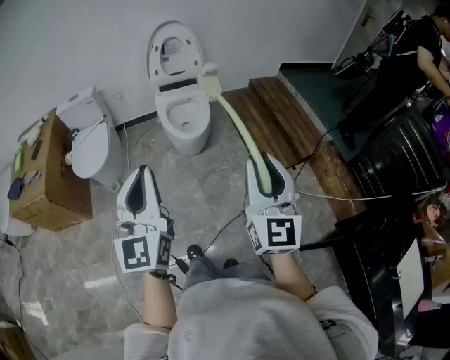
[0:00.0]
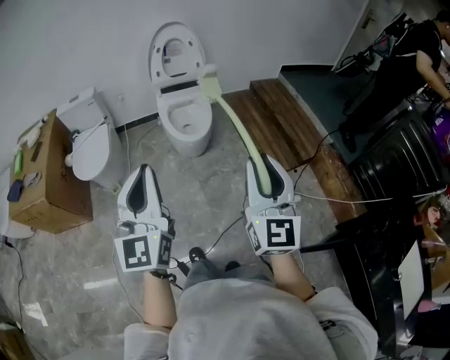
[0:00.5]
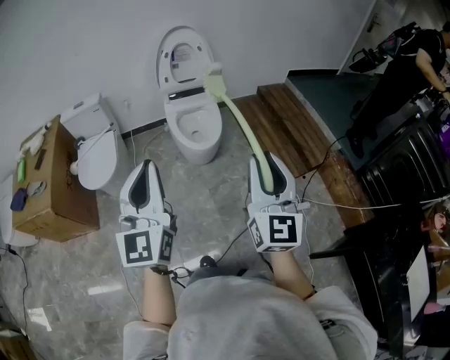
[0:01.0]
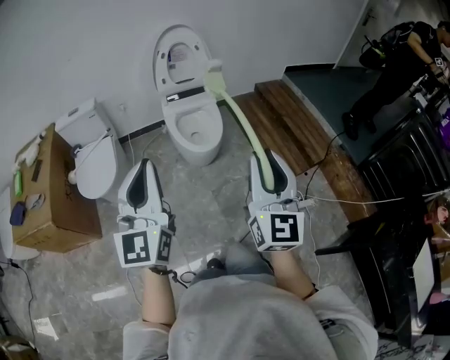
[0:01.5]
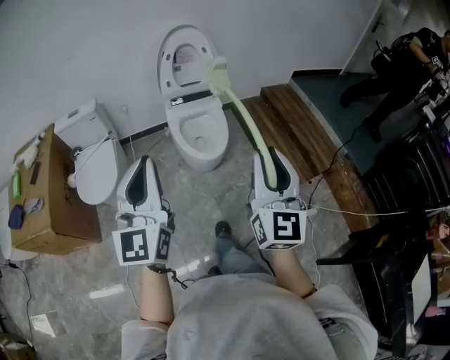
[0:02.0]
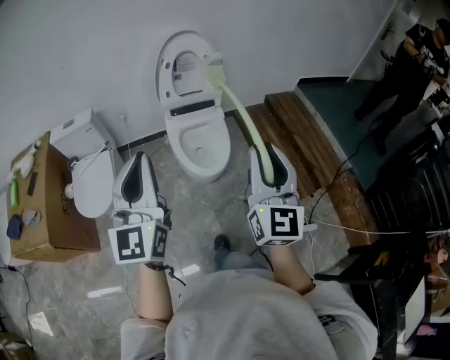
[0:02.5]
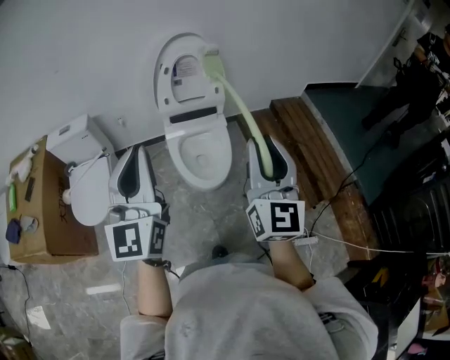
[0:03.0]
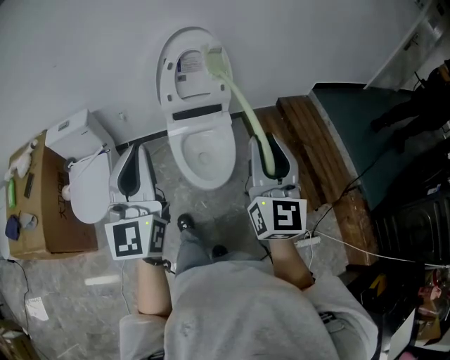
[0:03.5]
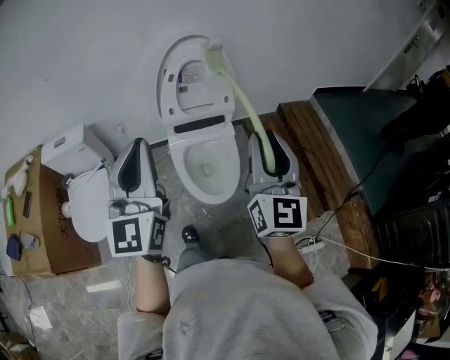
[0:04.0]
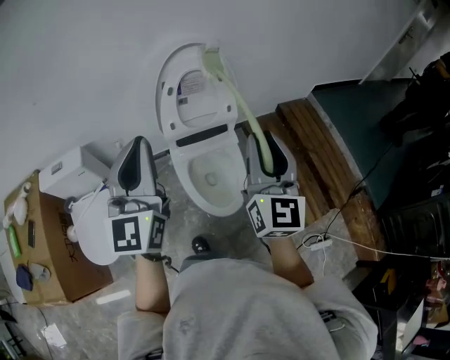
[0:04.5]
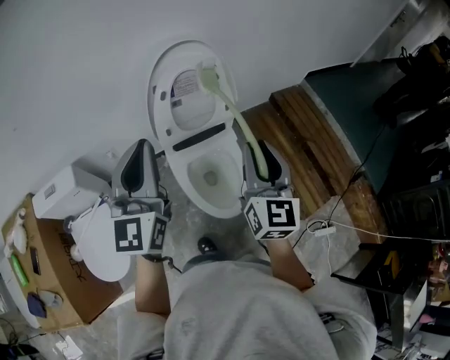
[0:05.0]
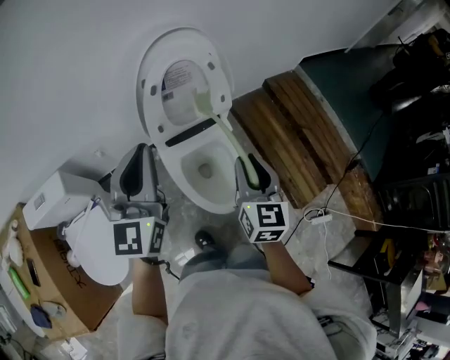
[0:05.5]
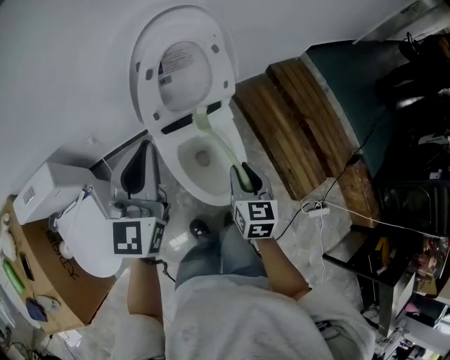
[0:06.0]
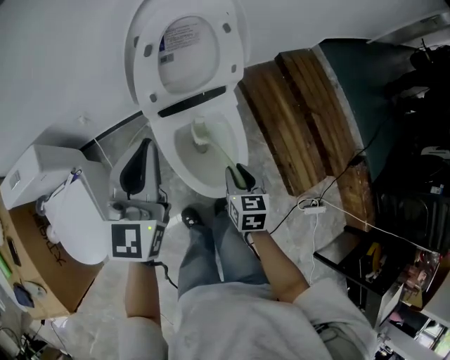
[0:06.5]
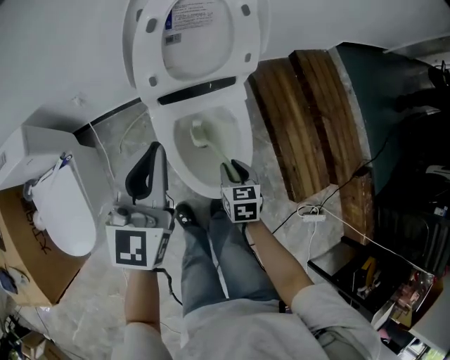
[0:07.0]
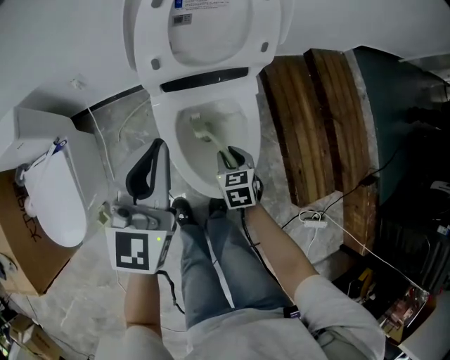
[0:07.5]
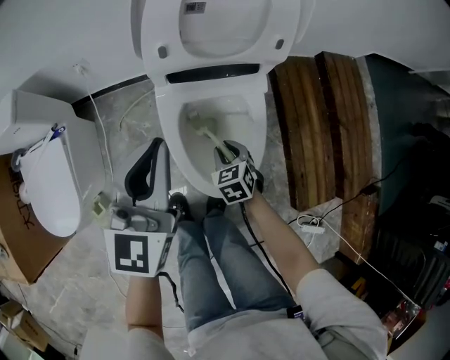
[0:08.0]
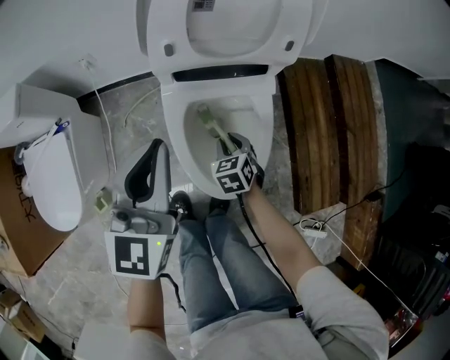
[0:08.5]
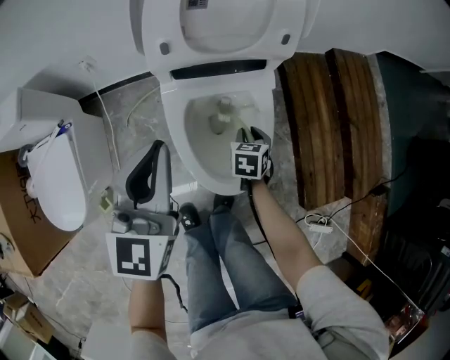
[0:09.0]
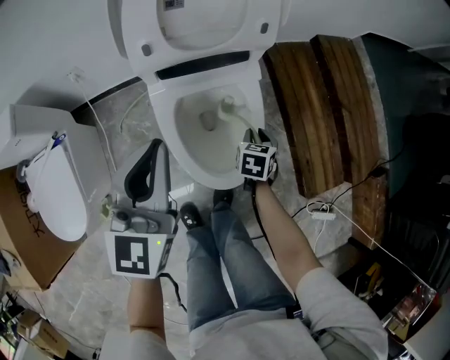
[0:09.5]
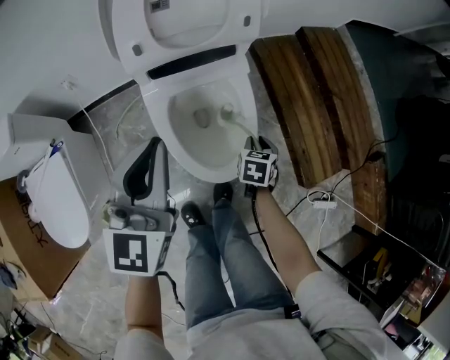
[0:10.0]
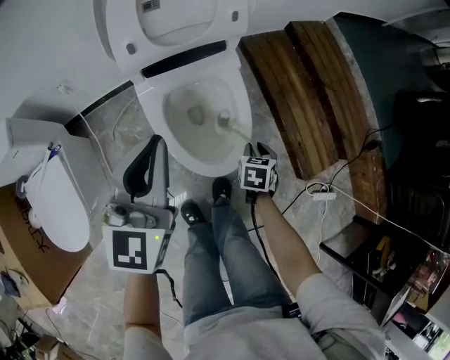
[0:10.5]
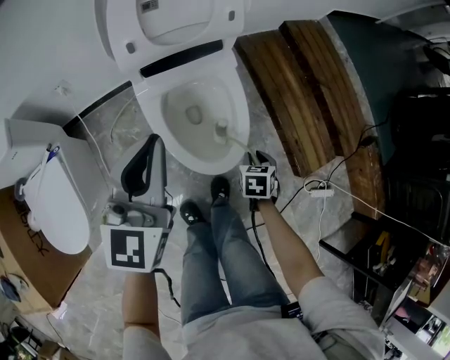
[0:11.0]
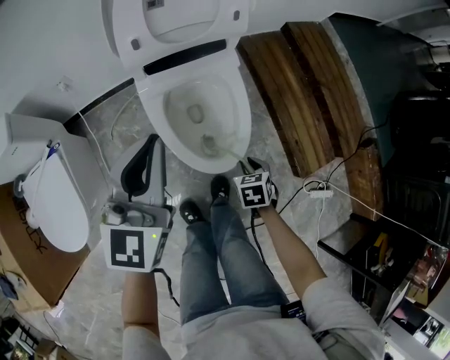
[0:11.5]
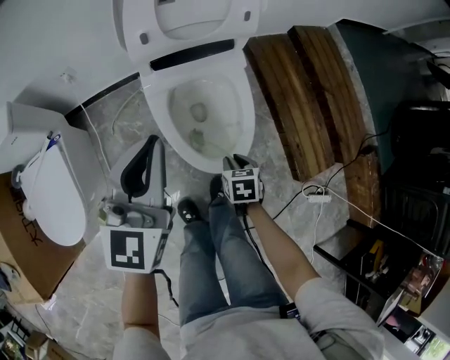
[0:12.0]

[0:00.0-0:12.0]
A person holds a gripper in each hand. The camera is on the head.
0:00.0 to 0:02.0: Both grippers move forward and to the left, roughly 25 cm.
0:02.0 to 0:04.0: The grippers both shift forward by some 35 cm.
0:04.0 to 0:06.0: The left gripper is displaced forward and downward by about 30 cm, and turns by about 20 degrees; the right gripper heads downward and forward, covering about 35 cm, and tips its fingers downward by approximately 40 degrees.
0:06.0 to 0:08.0: The right gripper shifts some 30 cm downward, and turns by about 50 degrees. Meanwhile the left gripper moves downward, roughly 20 cm.
0:08.0 to 0:10.0: The left gripper ends up roughly 5 cm from where it was, while the right gripper shifts by approximately 15 cm, and changes its angle by approximately 40 degrees.
0:10.0 to 0:12.0: The right gripper is displaced backward and to the left by about 15 cm.

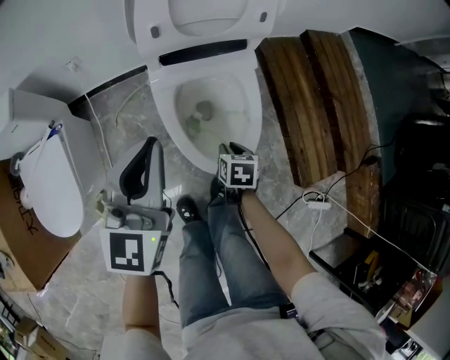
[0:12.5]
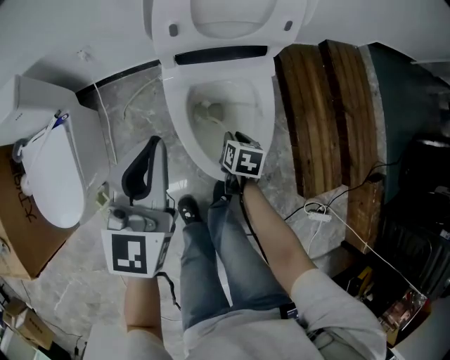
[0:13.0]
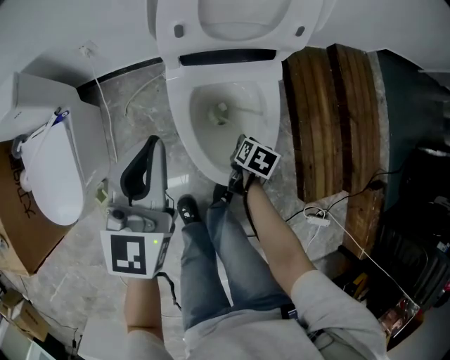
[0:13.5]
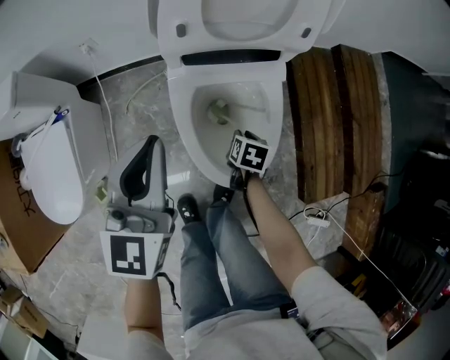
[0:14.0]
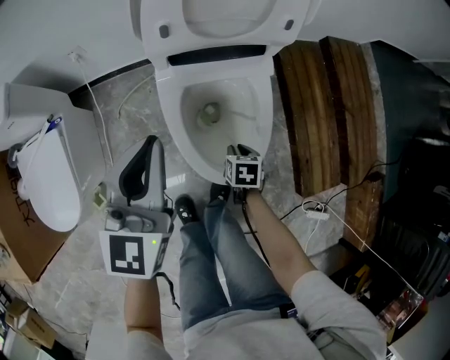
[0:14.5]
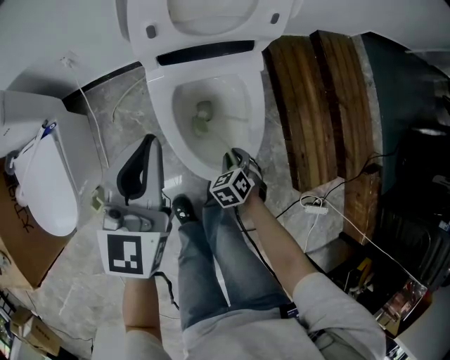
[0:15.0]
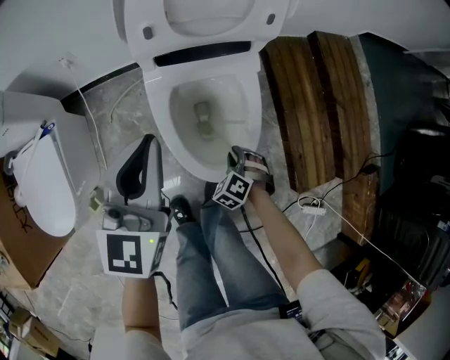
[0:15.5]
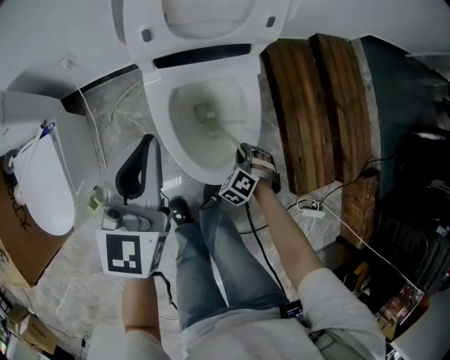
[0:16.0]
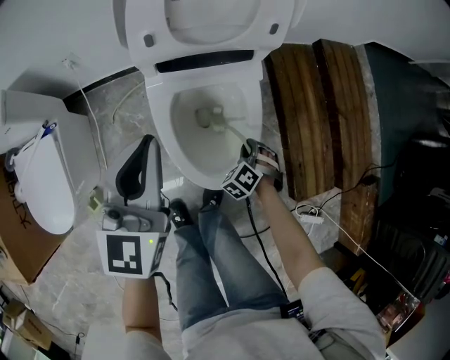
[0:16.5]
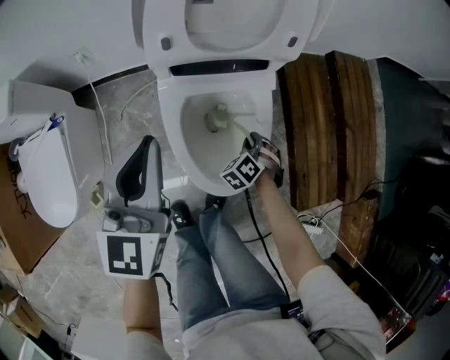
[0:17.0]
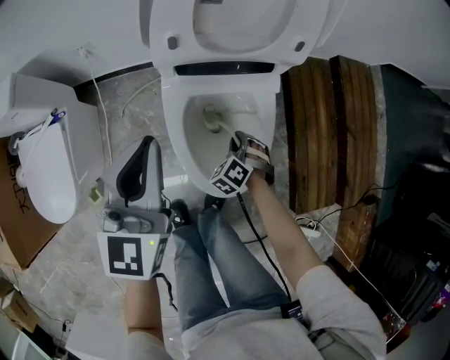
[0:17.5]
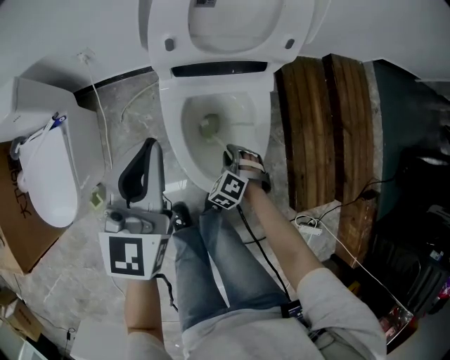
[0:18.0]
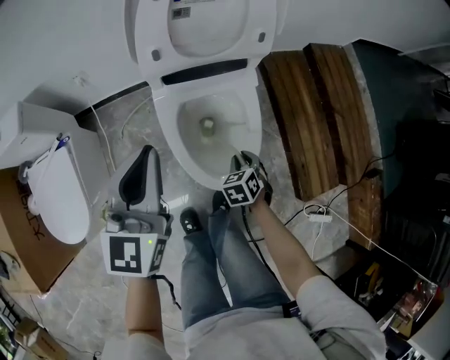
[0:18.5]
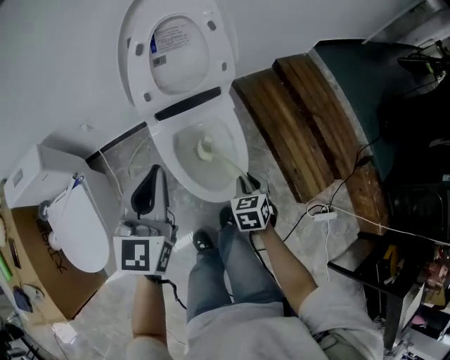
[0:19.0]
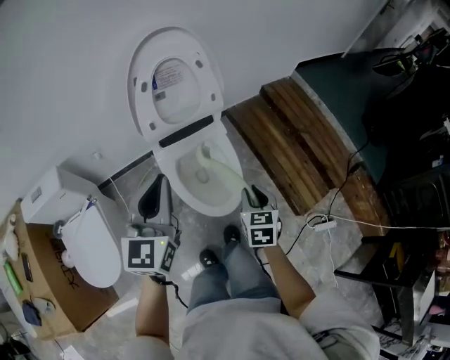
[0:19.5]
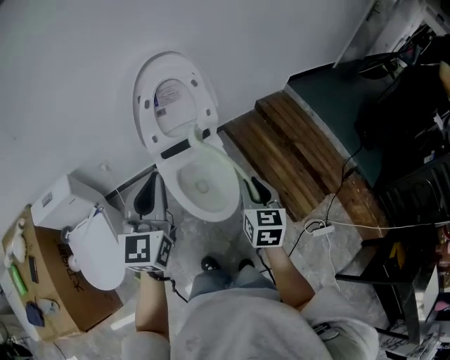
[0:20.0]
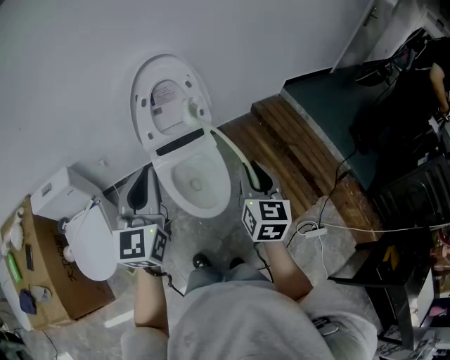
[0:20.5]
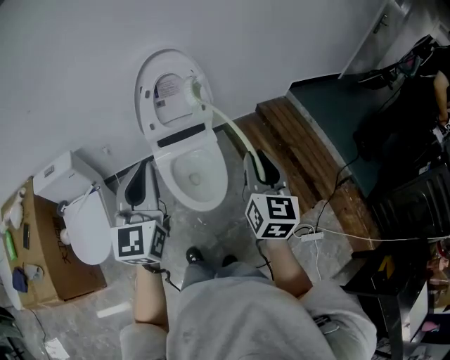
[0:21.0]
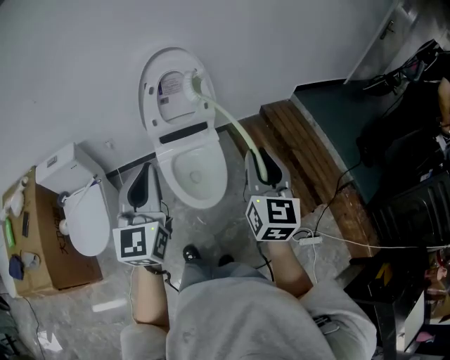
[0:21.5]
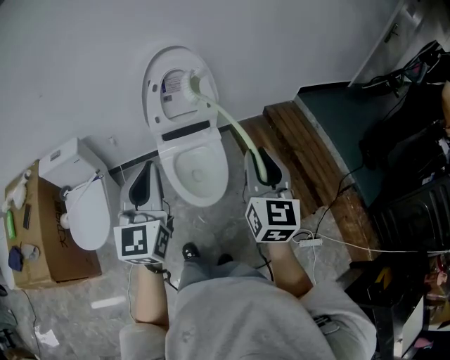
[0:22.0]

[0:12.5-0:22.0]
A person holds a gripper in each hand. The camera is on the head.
0:12.5 to 0:14.5: The left gripper changes place by roughly 5 cm; the right gripper travels downward by about 5 cm, and moves roughly 10 cm forward and comes back.
0:14.5 to 0:16.5: The right gripper travels to the right by roughly 5 cm, and rolls counterclockwise, seen from behind, by about 60 degrees.
0:16.5 to 0:18.0: The right gripper shifts some 10 cm to the left.
0:18.0 to 0:20.0: The left gripper travels upward and backward by roughly 30 cm; the right gripper travels upward by approximately 50 cm, and rotates around the line of its fingers by approximately 70 degrees, clockwise from behind.
0:20.0 to 0:22.0: The right gripper is displaced upward, to the right and backward by approximately 20 cm, and turns by approximately 20 degrees; the left gripper shifts roughly 15 cm backward, to the right and upward.

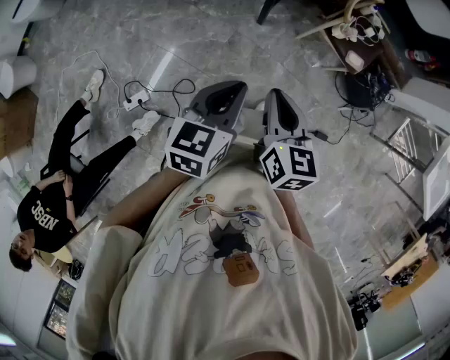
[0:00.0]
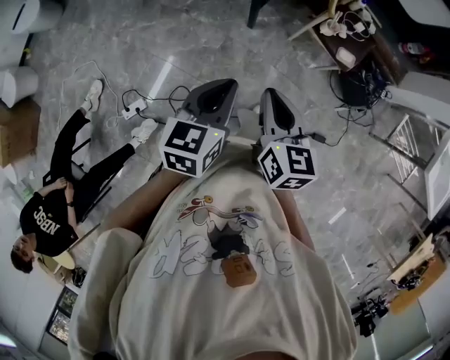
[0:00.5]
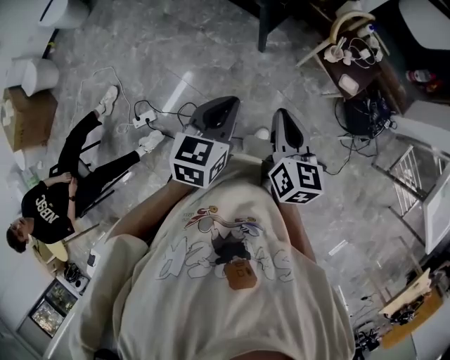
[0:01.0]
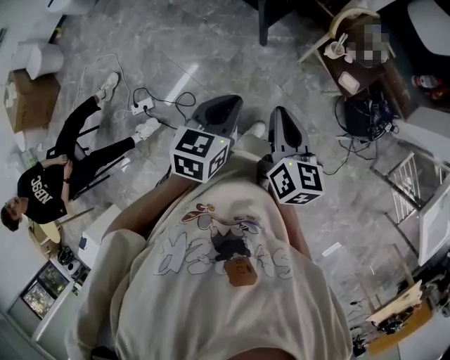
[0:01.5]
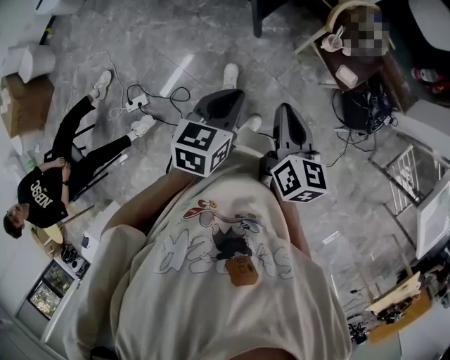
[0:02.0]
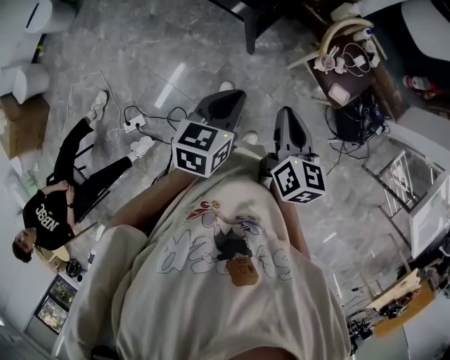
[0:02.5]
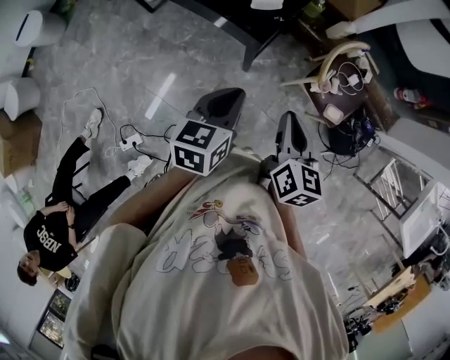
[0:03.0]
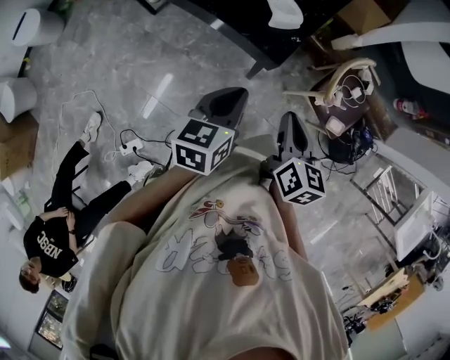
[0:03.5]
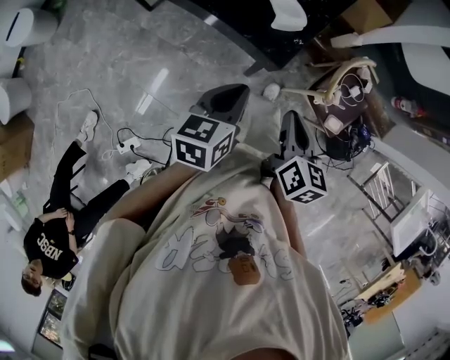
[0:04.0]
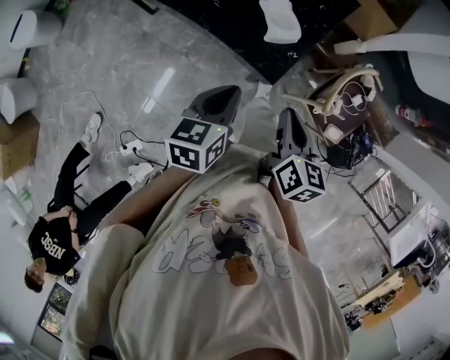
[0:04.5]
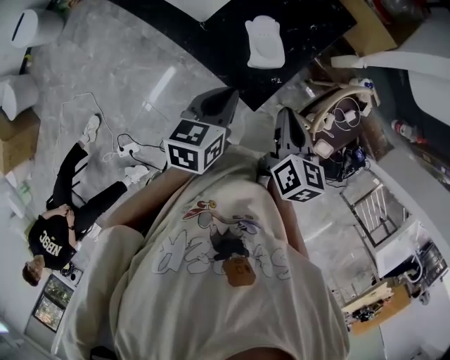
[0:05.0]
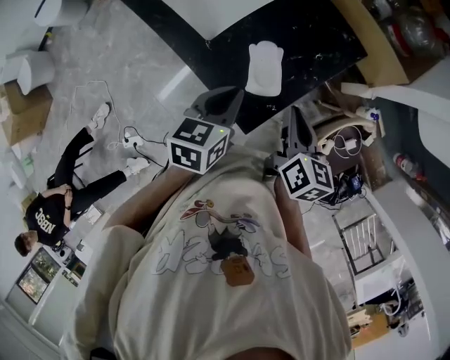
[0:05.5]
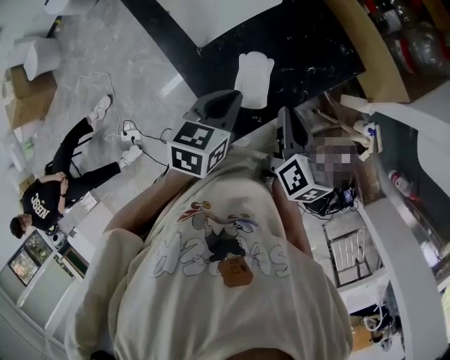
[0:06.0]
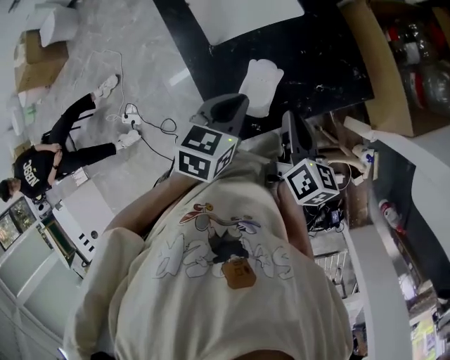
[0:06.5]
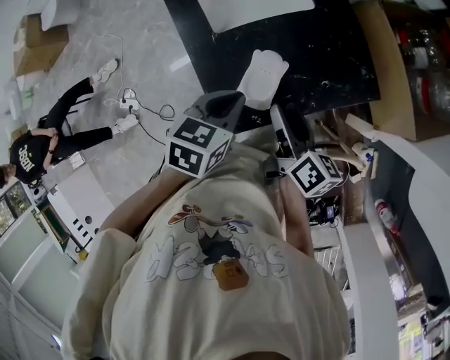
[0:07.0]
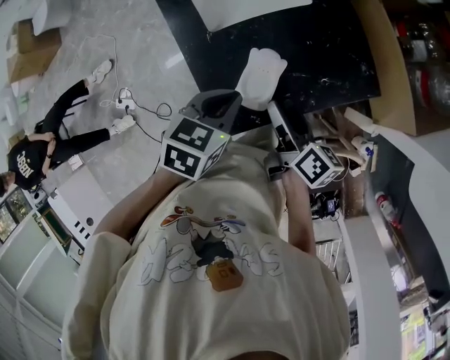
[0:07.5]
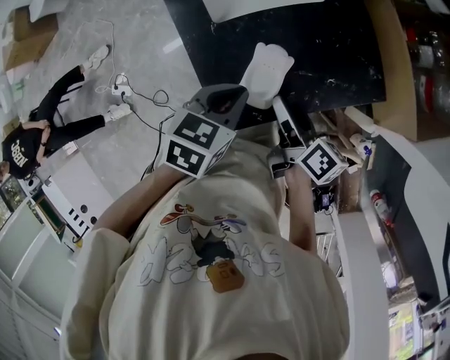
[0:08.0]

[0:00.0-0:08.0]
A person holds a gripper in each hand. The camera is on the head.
0:00.0 to 0:02.0: The two grippers go roughly 20 cm to the right.
0:02.0 to 0:04.0: Both grippers move forward and to the left, roughly 40 cm.
0:04.0 to 0:06.0: Both grippers move forward, about 30 cm. The left gripper turns by roughly 20 degrees. The right gripper turns by roughly 20 degrees.
0:06.0 to 0:08.0: The right gripper heads downward, covering some 5 cm, rotates roughly 30 degrees, and opens.
